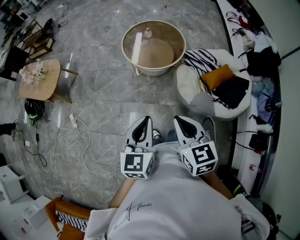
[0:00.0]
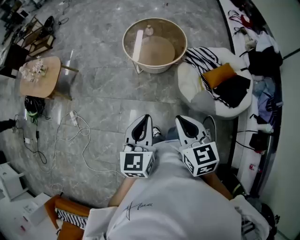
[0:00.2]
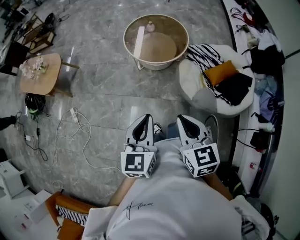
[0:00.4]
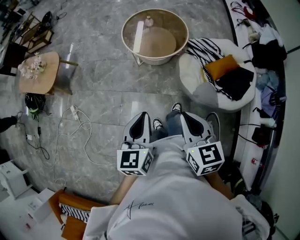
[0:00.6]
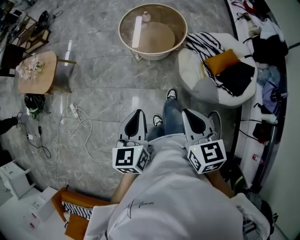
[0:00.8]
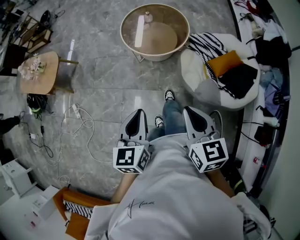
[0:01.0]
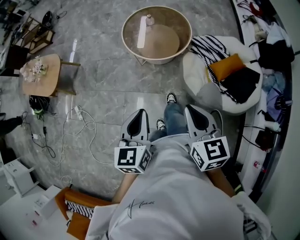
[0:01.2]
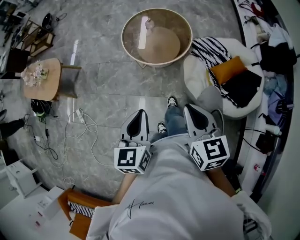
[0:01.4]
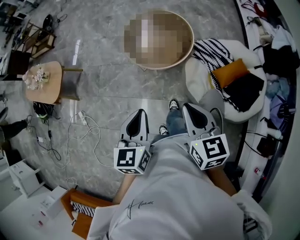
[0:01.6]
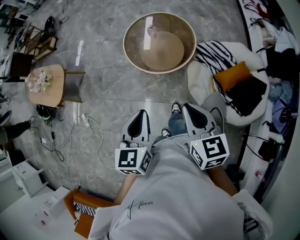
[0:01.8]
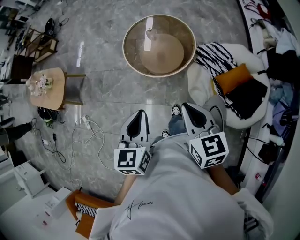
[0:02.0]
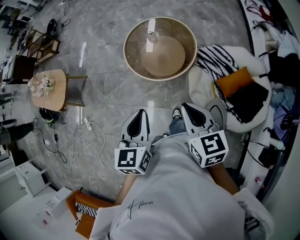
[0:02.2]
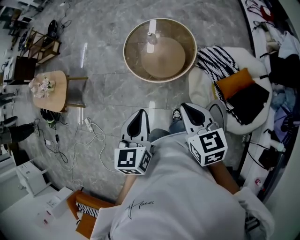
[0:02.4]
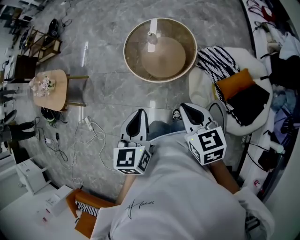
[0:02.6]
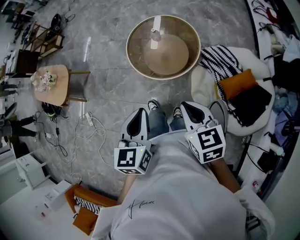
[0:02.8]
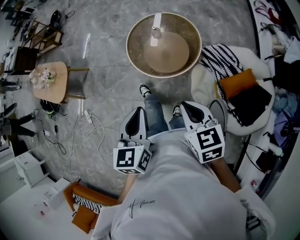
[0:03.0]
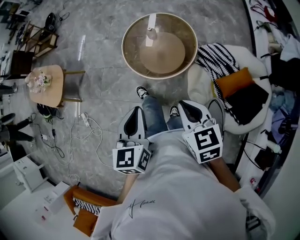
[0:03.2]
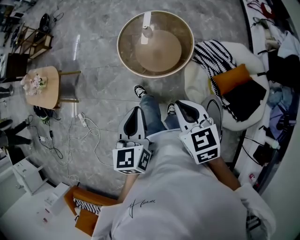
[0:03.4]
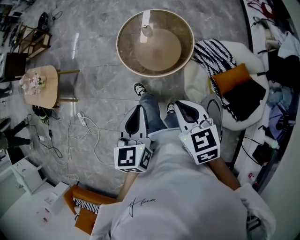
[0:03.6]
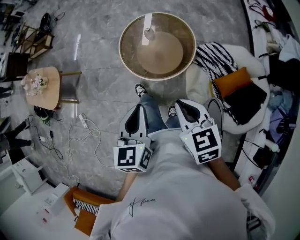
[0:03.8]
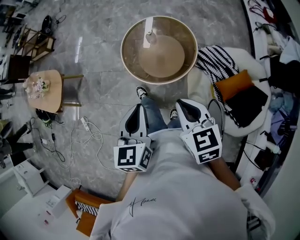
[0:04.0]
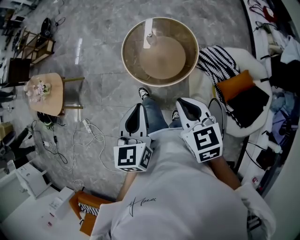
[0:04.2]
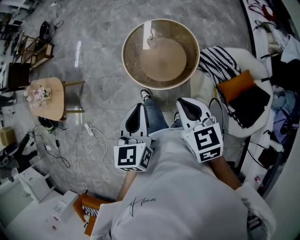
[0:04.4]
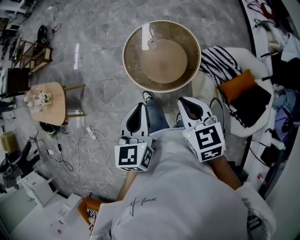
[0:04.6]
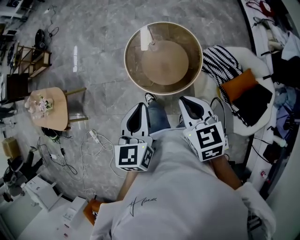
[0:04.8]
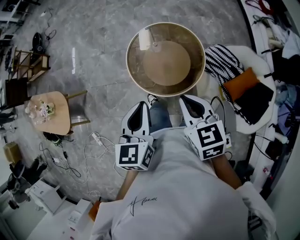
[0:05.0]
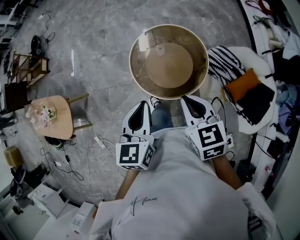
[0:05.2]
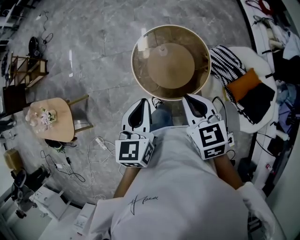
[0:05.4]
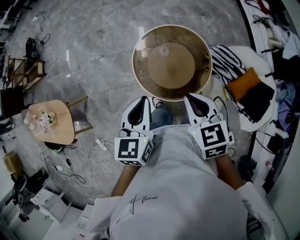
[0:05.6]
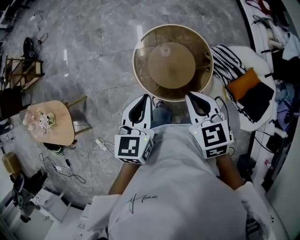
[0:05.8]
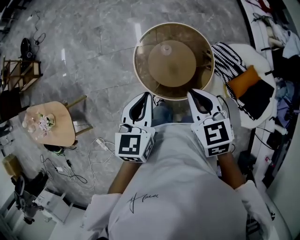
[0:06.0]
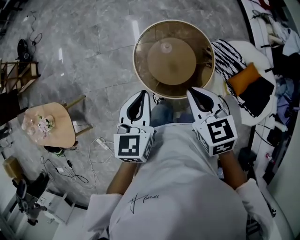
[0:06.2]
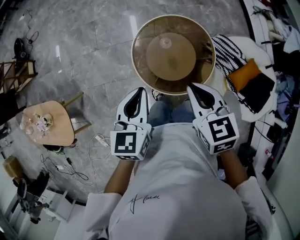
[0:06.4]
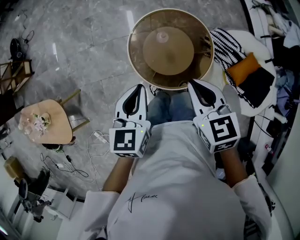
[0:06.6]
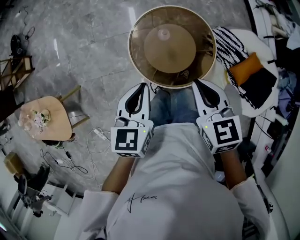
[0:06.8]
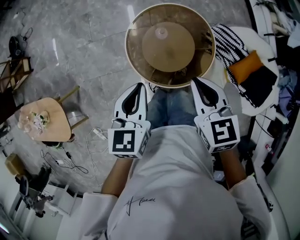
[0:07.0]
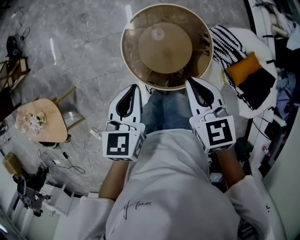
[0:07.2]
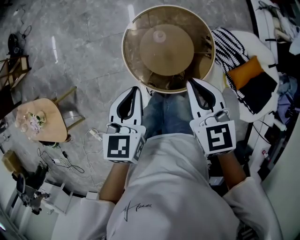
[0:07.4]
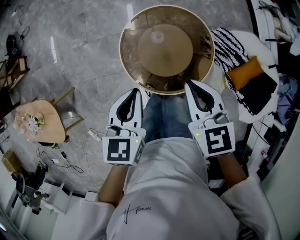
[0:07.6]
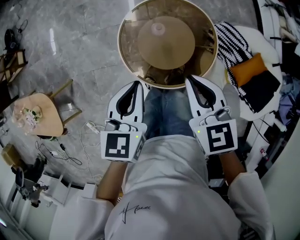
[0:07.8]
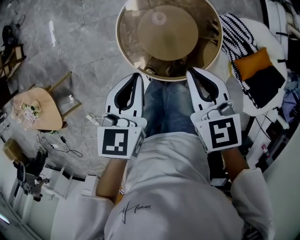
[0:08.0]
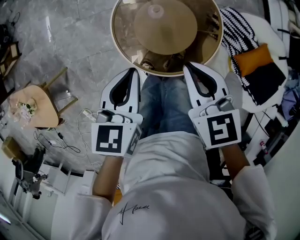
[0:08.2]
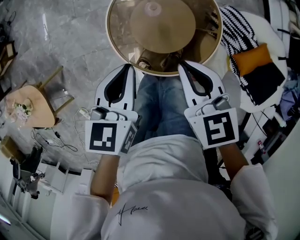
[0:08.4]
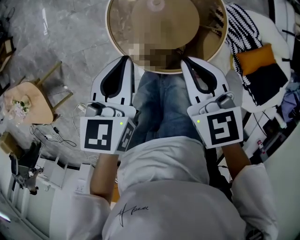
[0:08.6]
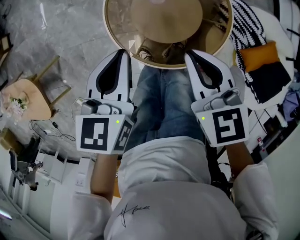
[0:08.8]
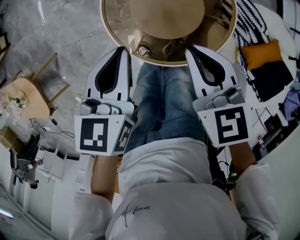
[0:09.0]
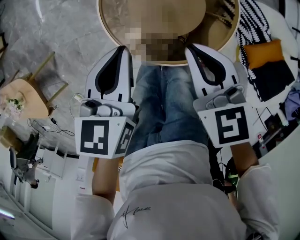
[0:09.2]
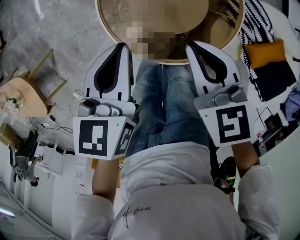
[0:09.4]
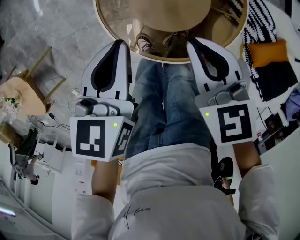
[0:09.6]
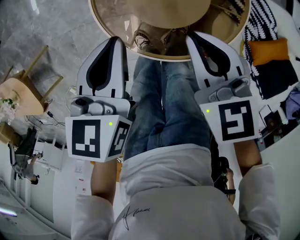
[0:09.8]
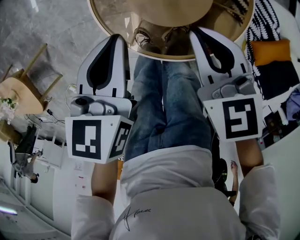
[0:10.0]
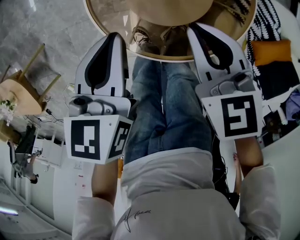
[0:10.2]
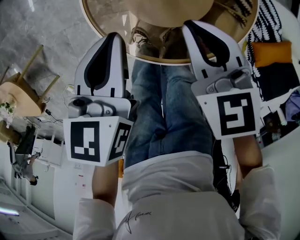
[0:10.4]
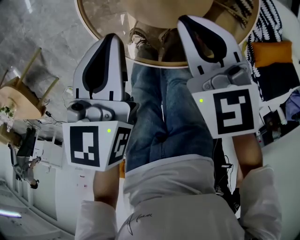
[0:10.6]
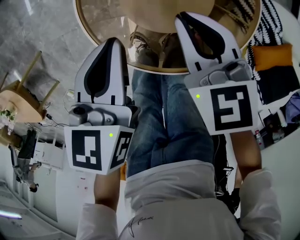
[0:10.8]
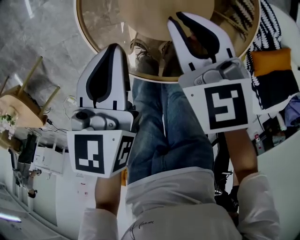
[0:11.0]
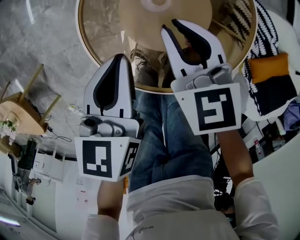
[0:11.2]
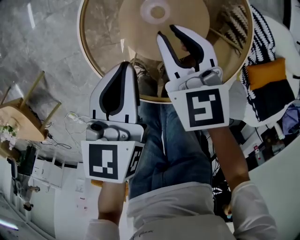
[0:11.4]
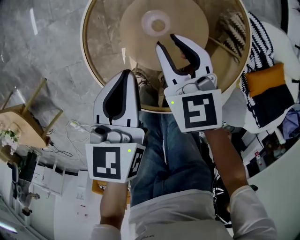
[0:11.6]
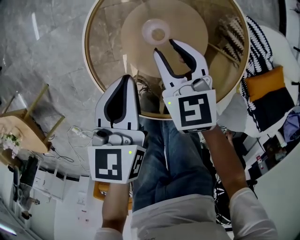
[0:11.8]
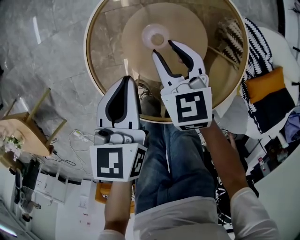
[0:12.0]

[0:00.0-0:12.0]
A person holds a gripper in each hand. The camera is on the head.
0:00.0 to 0:01.6: The right gripper shifts roughly 20 cm forward and to the right. Meanwhile the left gripper travels forward by about 15 cm.
0:01.6 to 0:03.0: Both grippers travel together forward, approximately 10 cm.
0:03.0 to 0:04.4: The two grippers go about 10 cm forward.
0:04.4 to 0:06.0: Both grippers travel together forward and to the left, approximately 25 cm. The left gripper rotates some 20 degrees.
0:06.0 to 0:07.6: The right gripper goes some 10 cm downward and forward. Meanwhile the left gripper shifts about 10 cm downward.
0:07.6 to 0:09.0: The grippers both shift downward by some 15 cm.
0:09.0 to 0:10.4: The two grippers go roughly 10 cm downward.
0:10.4 to 0:12.0: The right gripper shifts some 15 cm forward and downward, and opens up. Meanwhile the left gripper shifts some 10 cm forward and downward.

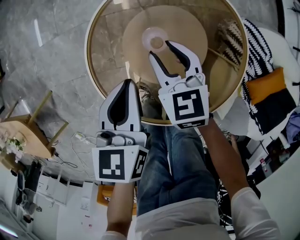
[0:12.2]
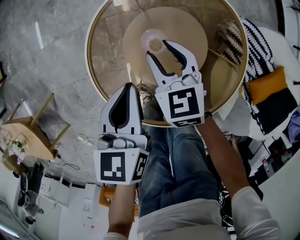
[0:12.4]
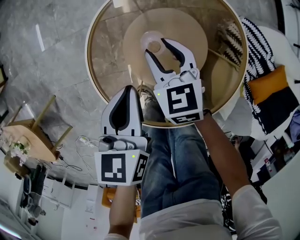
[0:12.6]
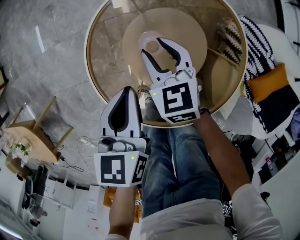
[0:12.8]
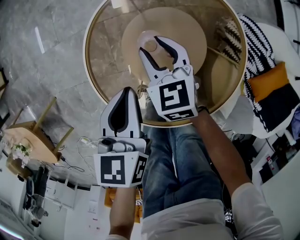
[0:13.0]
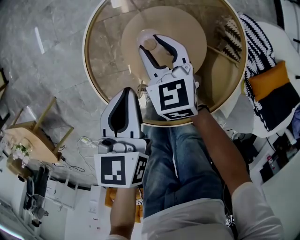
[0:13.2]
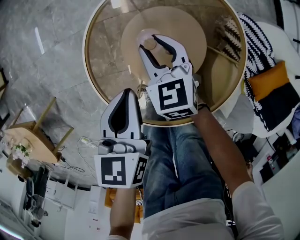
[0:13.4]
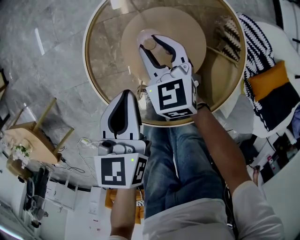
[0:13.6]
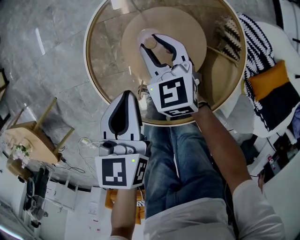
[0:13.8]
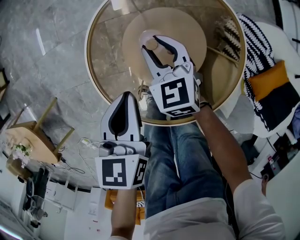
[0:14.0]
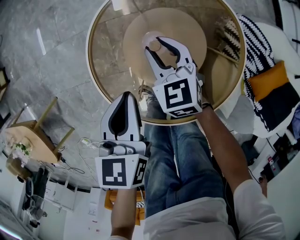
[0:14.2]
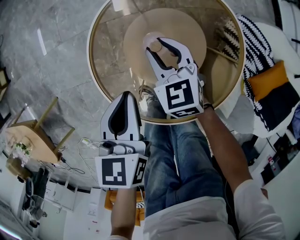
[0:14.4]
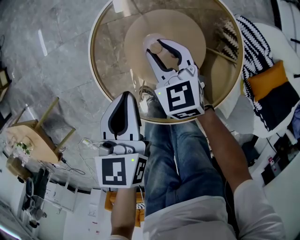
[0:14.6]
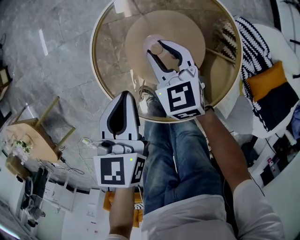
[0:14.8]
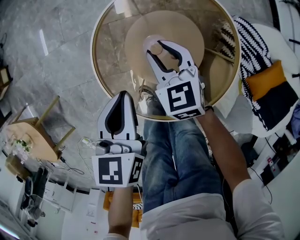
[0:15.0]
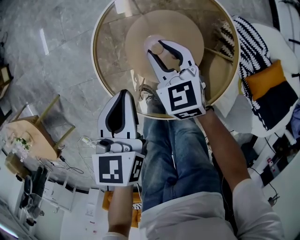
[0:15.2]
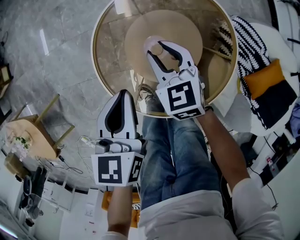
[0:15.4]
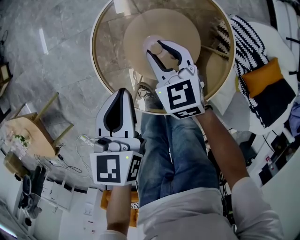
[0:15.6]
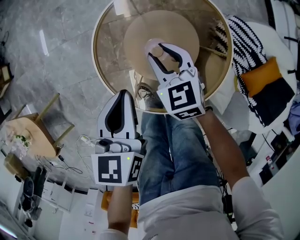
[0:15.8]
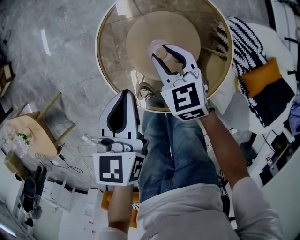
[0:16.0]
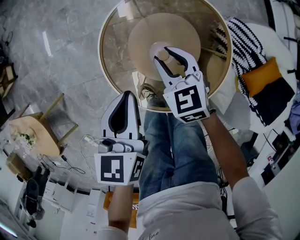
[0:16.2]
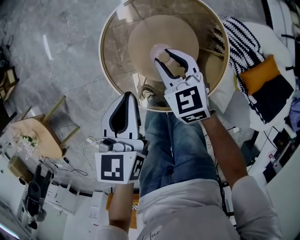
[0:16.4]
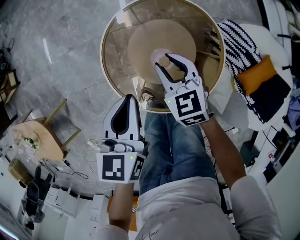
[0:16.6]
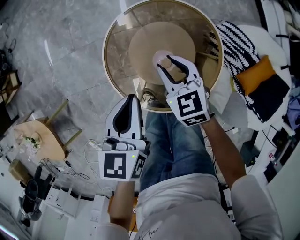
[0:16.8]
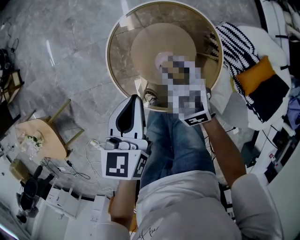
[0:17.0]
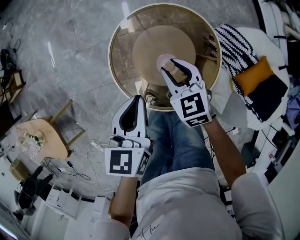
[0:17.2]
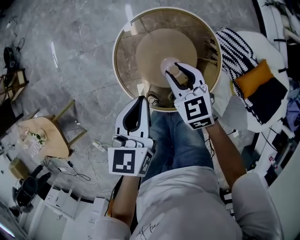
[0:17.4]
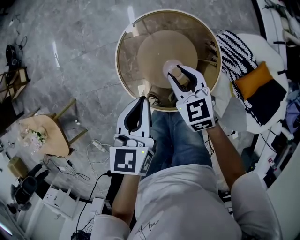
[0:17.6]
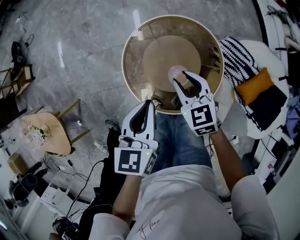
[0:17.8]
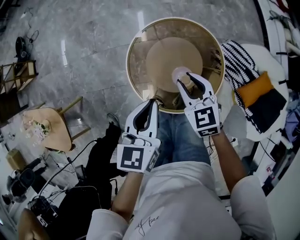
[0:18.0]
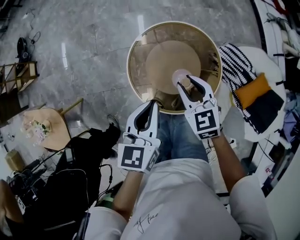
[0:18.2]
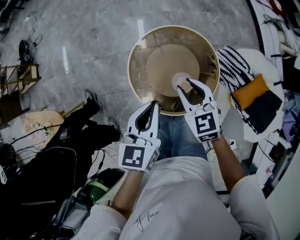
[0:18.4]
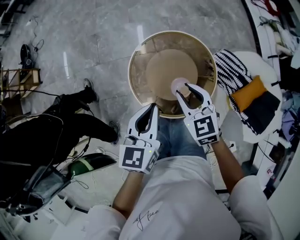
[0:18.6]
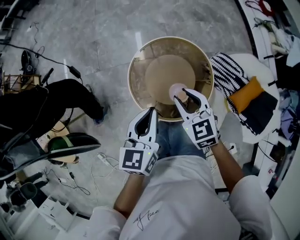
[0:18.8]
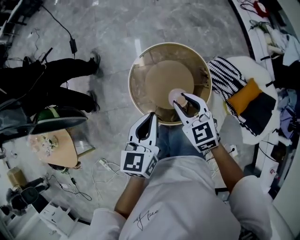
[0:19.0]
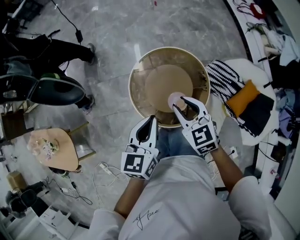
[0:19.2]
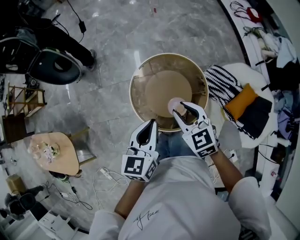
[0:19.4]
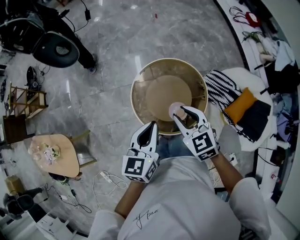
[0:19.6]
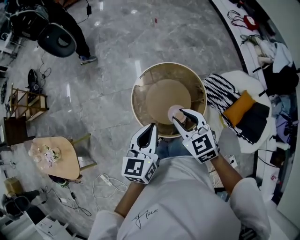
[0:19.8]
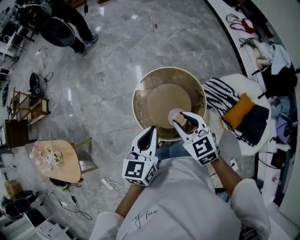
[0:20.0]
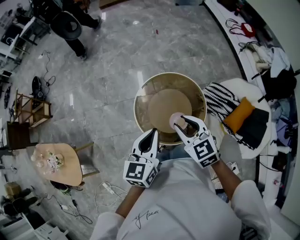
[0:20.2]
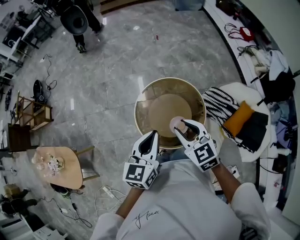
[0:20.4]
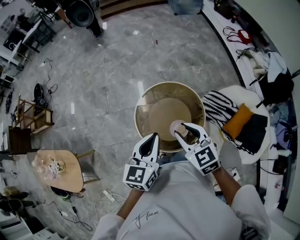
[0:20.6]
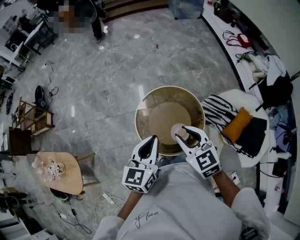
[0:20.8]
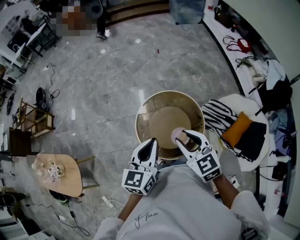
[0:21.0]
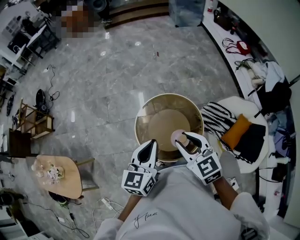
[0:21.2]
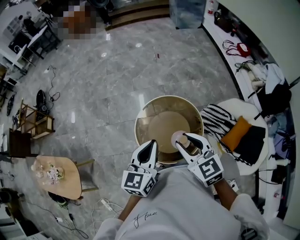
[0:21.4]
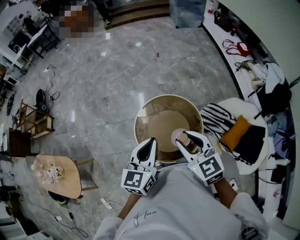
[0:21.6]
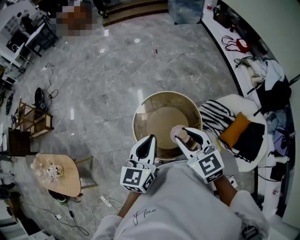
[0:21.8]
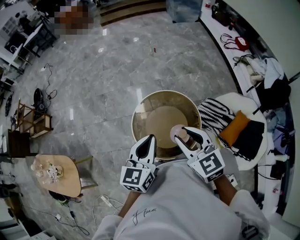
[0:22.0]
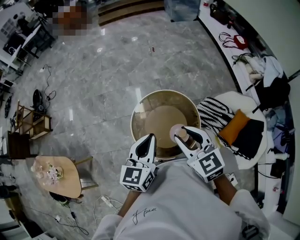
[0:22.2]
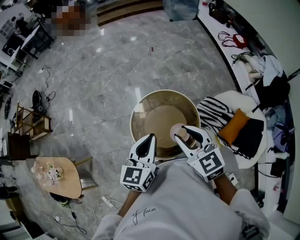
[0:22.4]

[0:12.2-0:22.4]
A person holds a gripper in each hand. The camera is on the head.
0:12.2 to 0:13.6: The grippers move only a little.
0:13.6 to 0:15.2: The left gripper heads upward, covering roughly 5 cm. Meanwhile the right gripper moves about 5 cm.
0:15.2 to 0:16.6: Both grippers travel together upward, roughly 10 cm.
0:16.6 to 0:18.0: Both grippers move upward, some 10 cm.
0:18.0 to 0:19.4: The right gripper moves upward and backward, approximately 15 cm. The left gripper moves upward, about 10 cm.
0:19.4 to 0:21.0: The grippers both shift upward by about 10 cm.
0:21.0 to 0:22.4: The grippers move only a little.

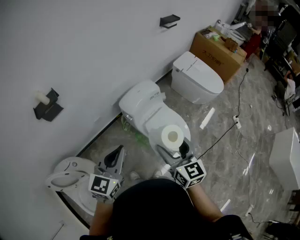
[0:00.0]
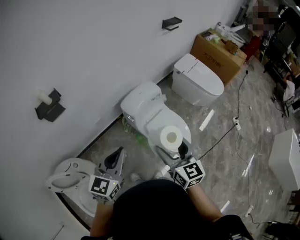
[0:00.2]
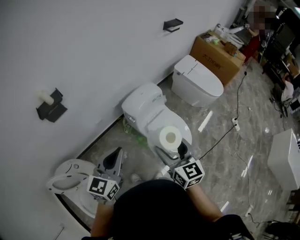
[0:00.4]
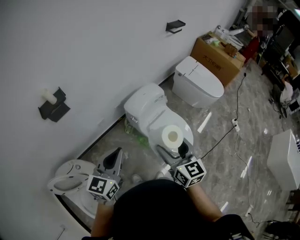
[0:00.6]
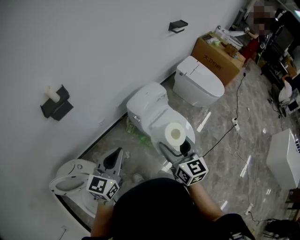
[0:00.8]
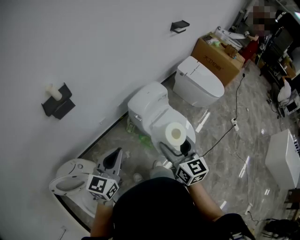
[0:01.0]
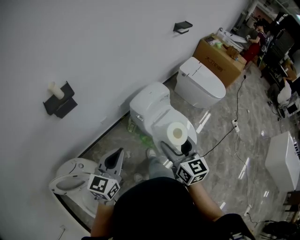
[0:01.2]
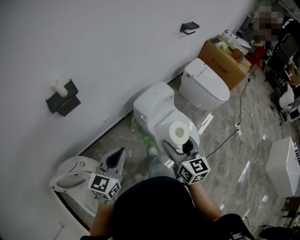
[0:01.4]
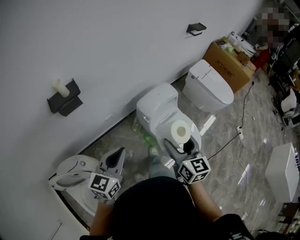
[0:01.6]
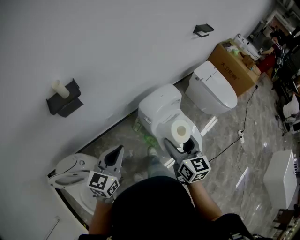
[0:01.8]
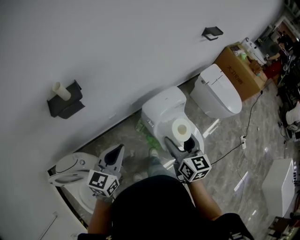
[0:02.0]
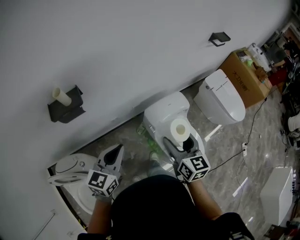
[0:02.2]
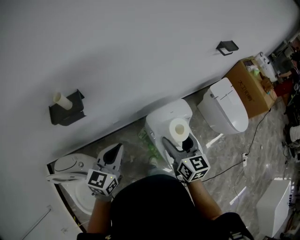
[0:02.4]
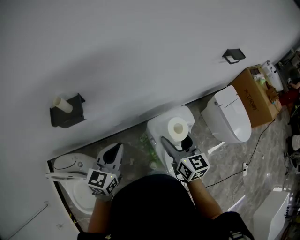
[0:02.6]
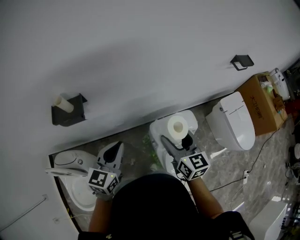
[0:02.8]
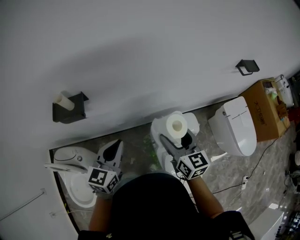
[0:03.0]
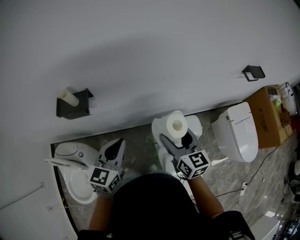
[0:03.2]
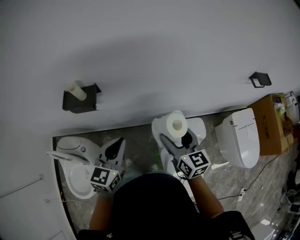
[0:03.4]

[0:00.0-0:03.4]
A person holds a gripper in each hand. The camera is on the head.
0:00.0 to 0:01.6: Both grippers travel together to the left, about 15 cm.
0:01.6 to 0:03.4: The right gripper moves roughly 30 cm, and swivels roughly 40 degrees. The left gripper moves approximately 20 cm, and swivels about 30 degrees.
